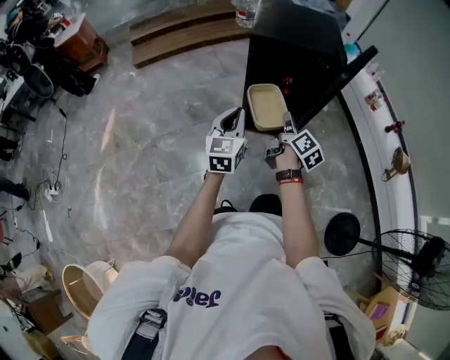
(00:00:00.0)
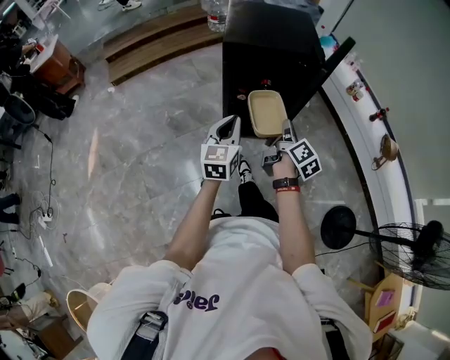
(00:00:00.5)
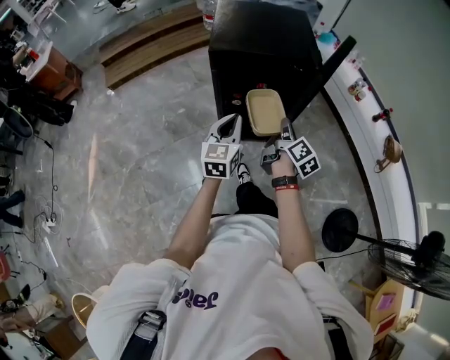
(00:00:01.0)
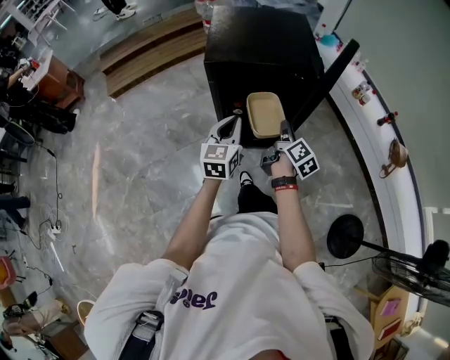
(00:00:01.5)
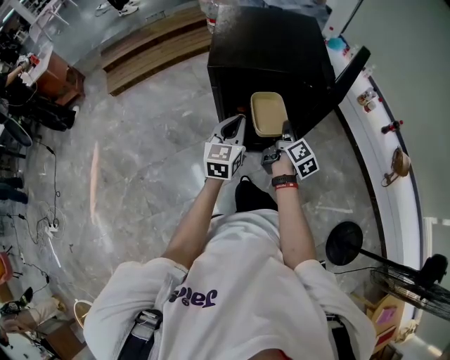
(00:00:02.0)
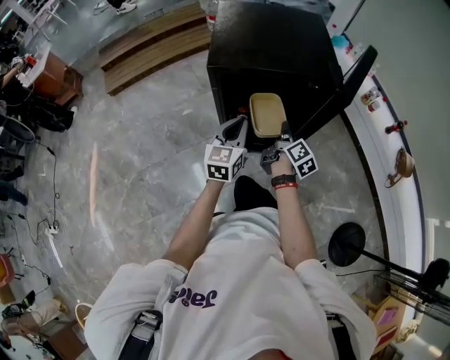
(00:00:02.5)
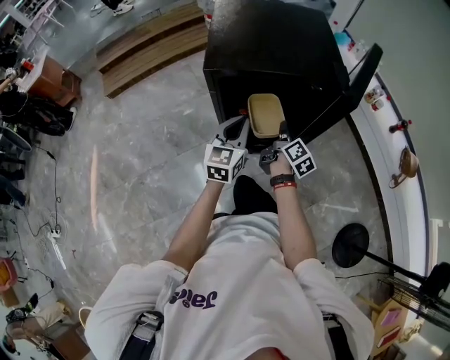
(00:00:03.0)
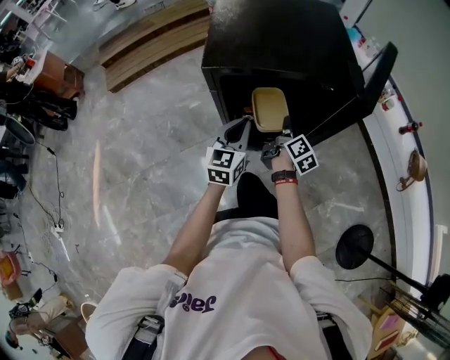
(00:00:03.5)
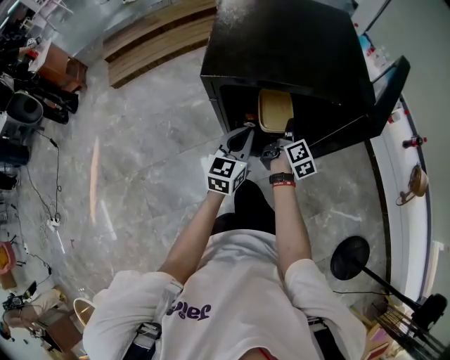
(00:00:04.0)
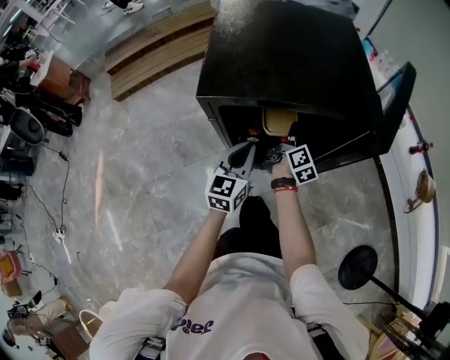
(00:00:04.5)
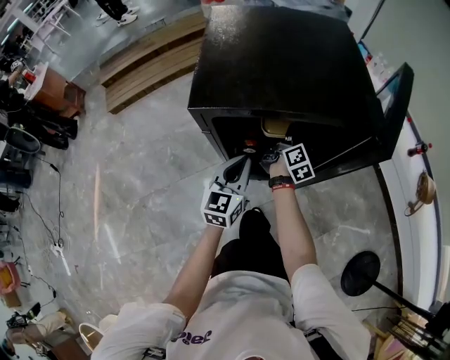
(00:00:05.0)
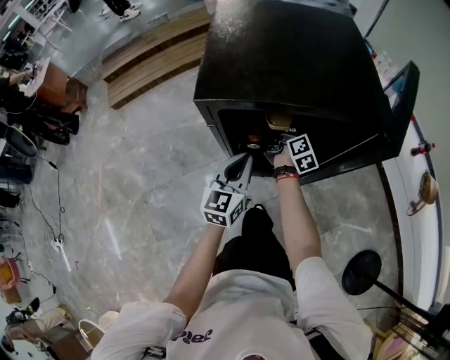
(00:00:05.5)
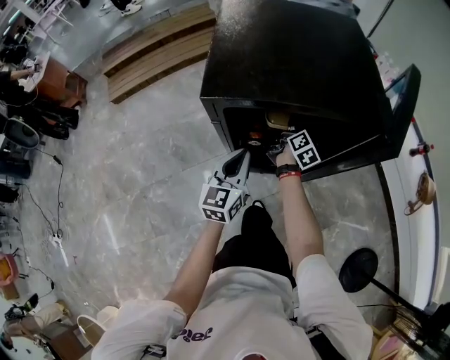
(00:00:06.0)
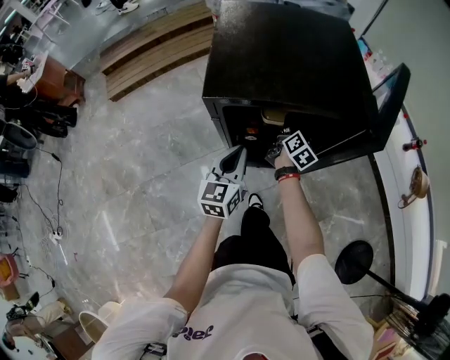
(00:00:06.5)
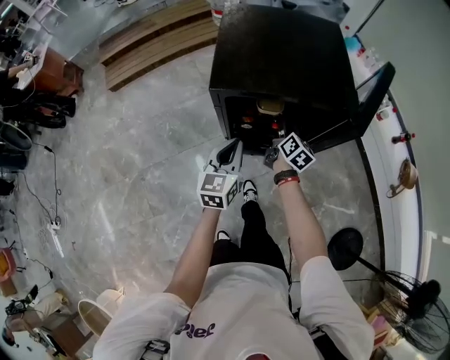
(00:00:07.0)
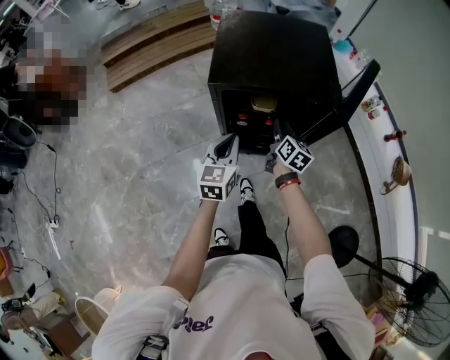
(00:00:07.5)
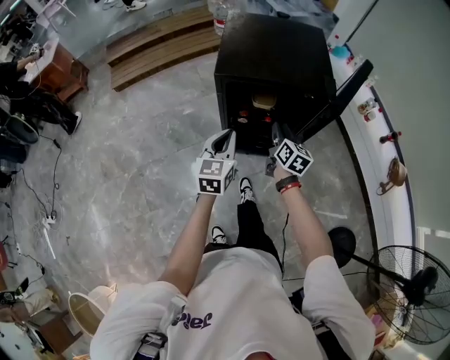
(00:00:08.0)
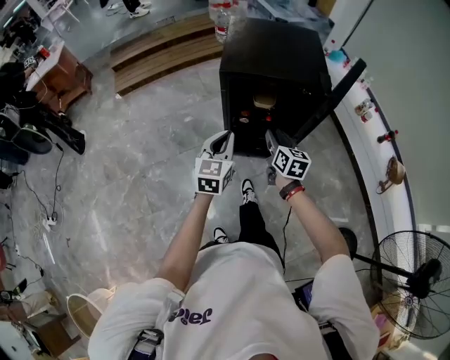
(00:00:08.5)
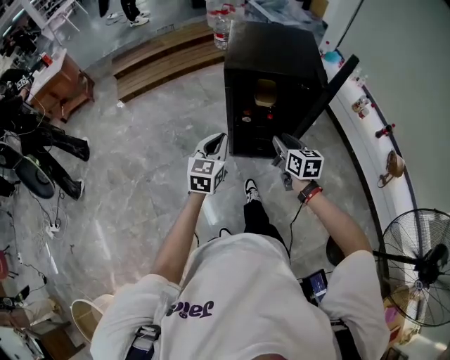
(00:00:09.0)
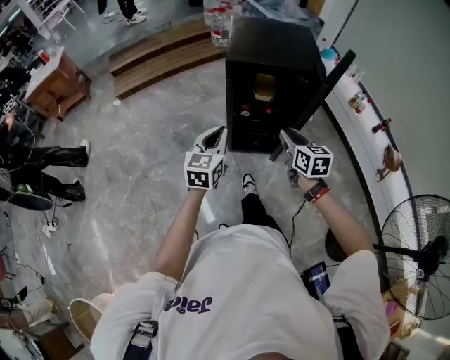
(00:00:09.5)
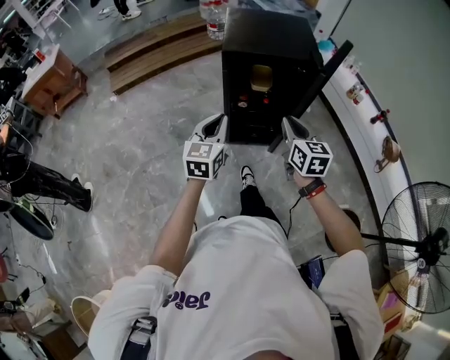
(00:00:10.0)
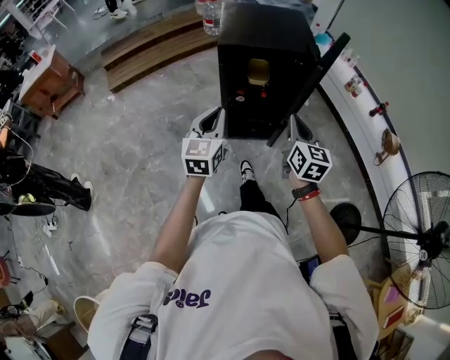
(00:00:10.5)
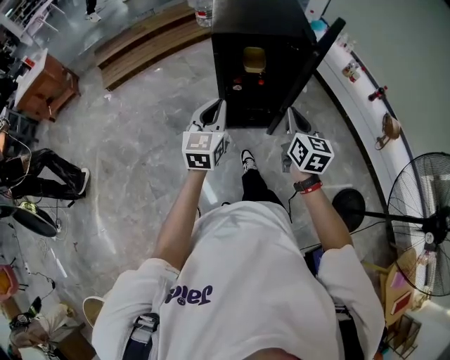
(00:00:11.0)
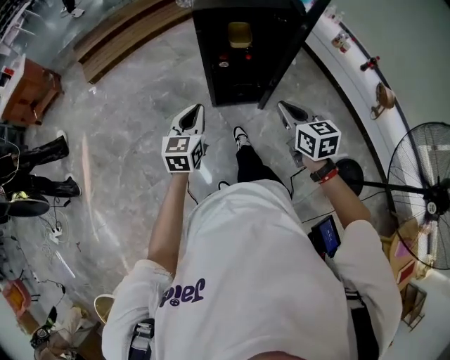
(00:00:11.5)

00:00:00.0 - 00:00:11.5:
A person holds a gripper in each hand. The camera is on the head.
00:00:00.0 - 00:00:02.0: The right gripper goes about 25 cm forward and downward; the left gripper is displaced forward by roughly 25 cm.
00:00:02.0 - 00:00:04.0: Both grippers move downward and forward, roughly 20 cm.
00:00:04.0 - 00:00:06.0: The right gripper shifts approximately 10 cm forward and downward, and opens its fingers.
00:00:06.0 - 00:00:07.5: Both grippers travel together upward and backward, about 20 cm. The right gripper turns by approximately 30 degrees.
00:00:07.5 - 00:00:09.5: The grippers both shift backward and upward by approximately 25 cm. The right gripper swivels approximately 30 degrees.
00:00:09.5 - 00:00:11.5: The left gripper is displaced downward by approximately 5 cm; the right gripper goes roughly 10 cm backward, and closes its fingers.

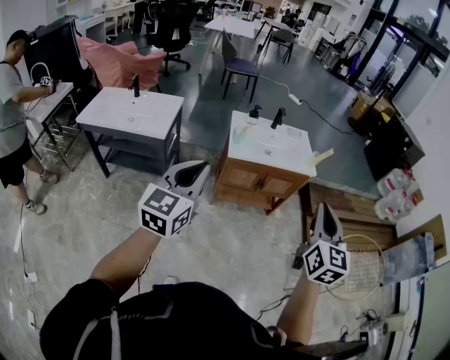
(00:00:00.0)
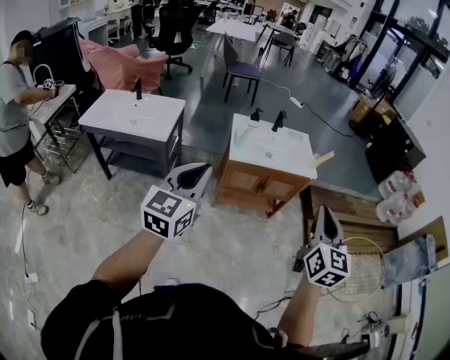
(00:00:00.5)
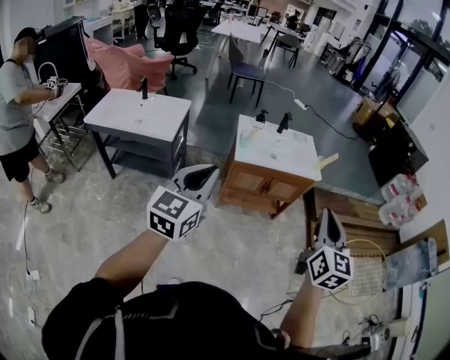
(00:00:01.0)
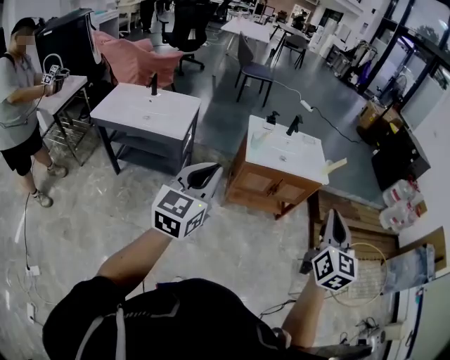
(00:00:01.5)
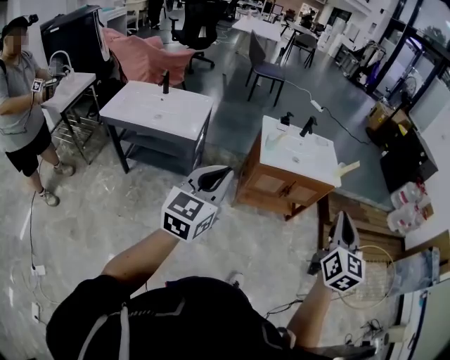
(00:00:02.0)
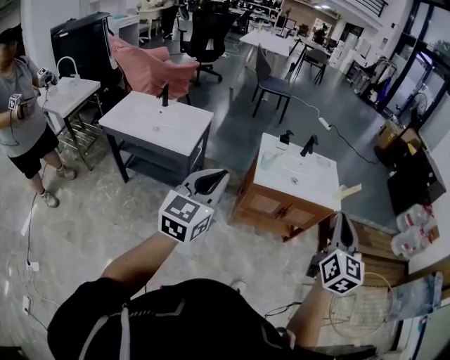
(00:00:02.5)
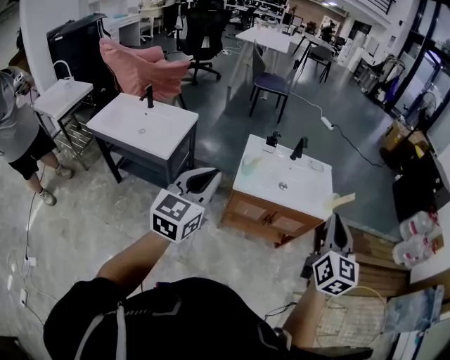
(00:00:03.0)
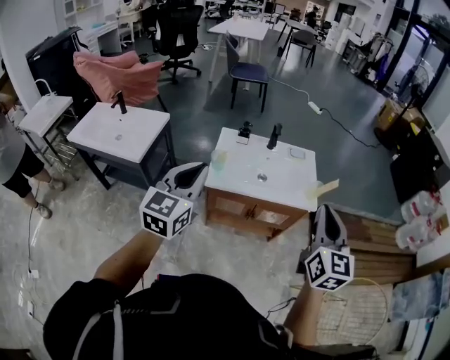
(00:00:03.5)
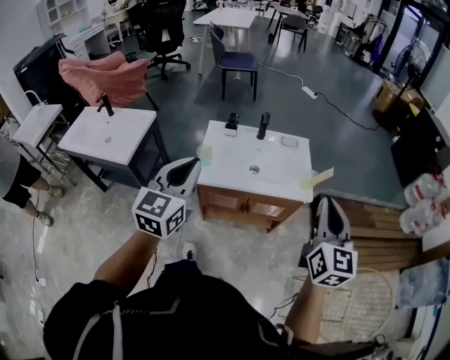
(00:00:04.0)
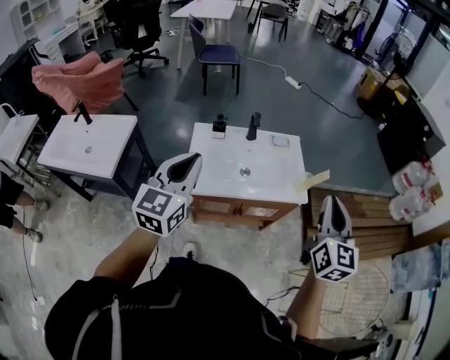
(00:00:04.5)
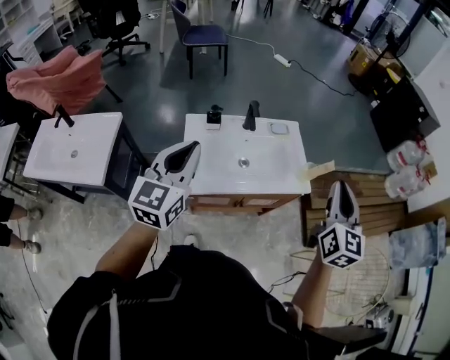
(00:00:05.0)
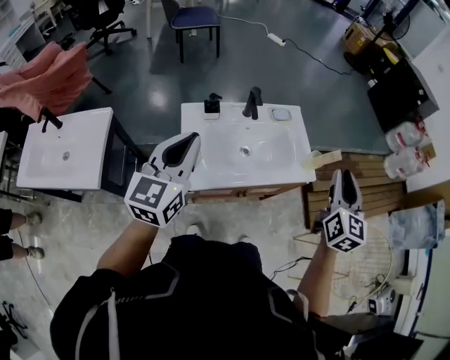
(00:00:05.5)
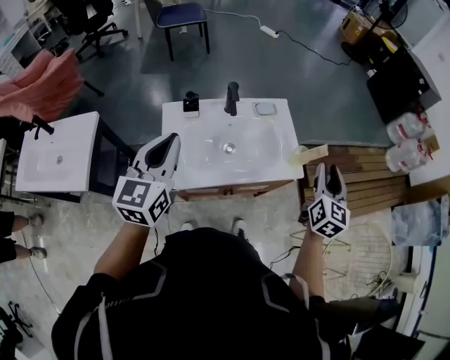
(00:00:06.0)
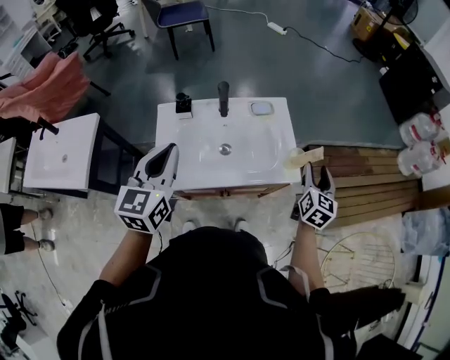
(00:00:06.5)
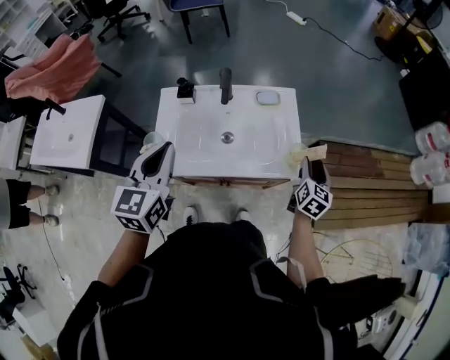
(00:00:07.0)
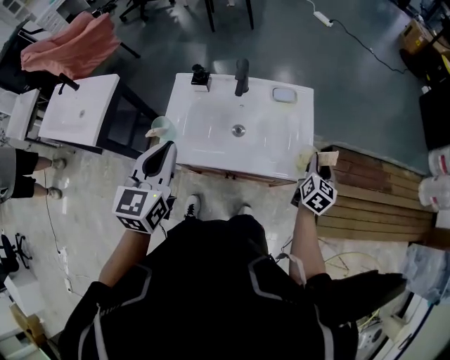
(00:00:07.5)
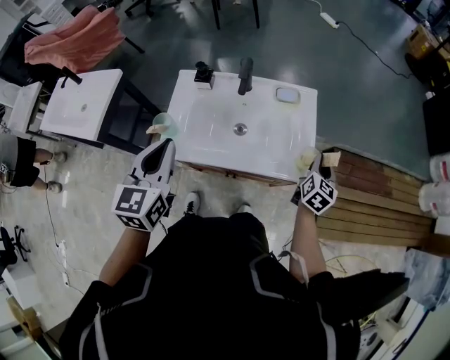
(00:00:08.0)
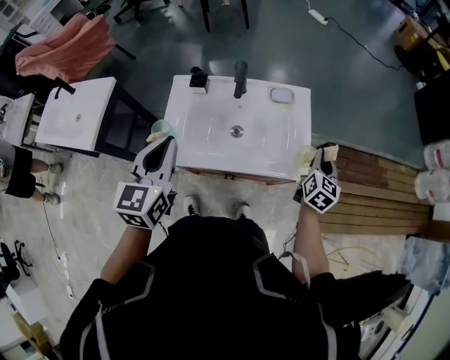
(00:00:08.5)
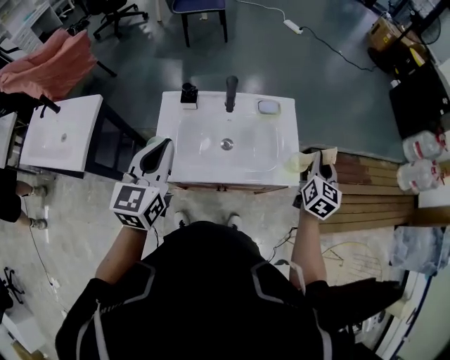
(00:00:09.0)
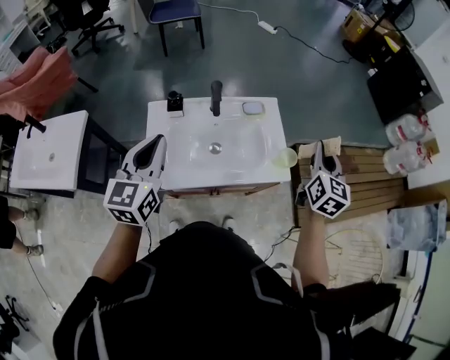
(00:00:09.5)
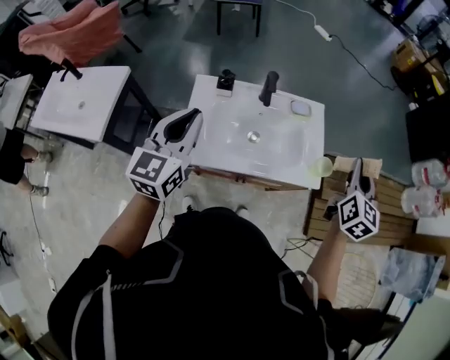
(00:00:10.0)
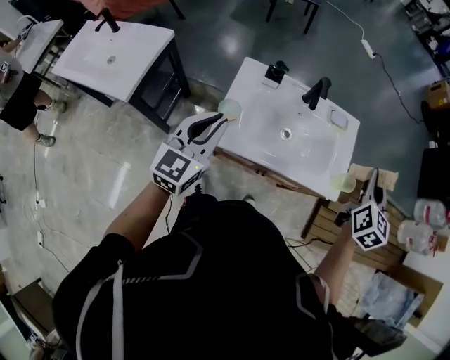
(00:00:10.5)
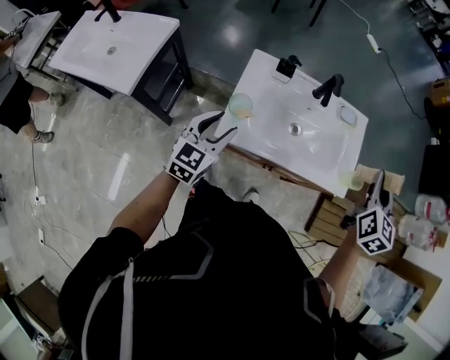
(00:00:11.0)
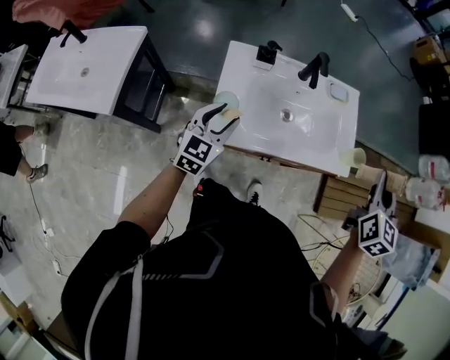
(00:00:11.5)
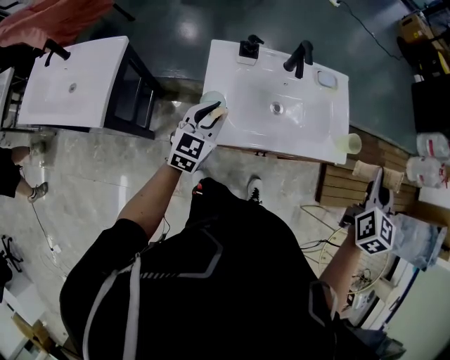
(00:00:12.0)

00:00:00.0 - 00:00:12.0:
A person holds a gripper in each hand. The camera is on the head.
00:00:00.0 - 00:00:02.0: The two grippers go some 10 cm to the left.
00:00:02.0 - 00:00:04.0: The pair of grippers is taken forward and to the right, some 40 cm.
00:00:04.0 - 00:00:06.0: The left gripper goes roughly 20 cm forward, while the right gripper moves forward and downward, about 25 cm, swivels approximately 30 degrees, and opens up.
00:00:06.0 - 00:00:08.0: The right gripper moves downward and forward, about 25 cm, and closes its fingers. Meanwhile the left gripper travels to the right and downward by some 10 cm, and swivels about 20 degrees.
00:00:08.0 - 00:00:10.0: The left gripper shifts roughly 10 cm to the left, while the right gripper goes approximately 25 cm upward.
00:00:10.0 - 00:00:12.0: The right gripper moves backward and to the left, roughly 10 cm. The left gripper shifts about 20 cm downward, and opens, then closes once more.

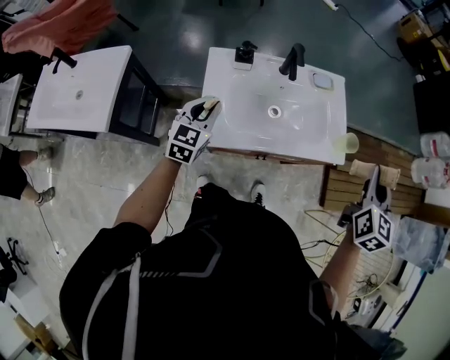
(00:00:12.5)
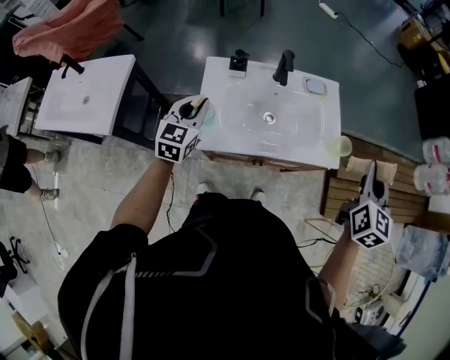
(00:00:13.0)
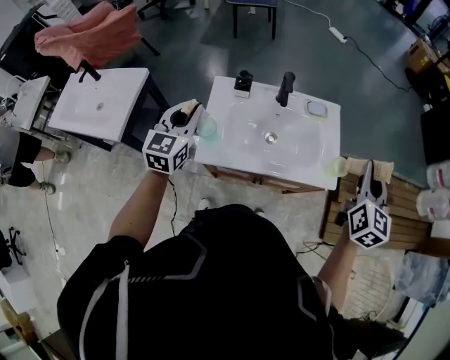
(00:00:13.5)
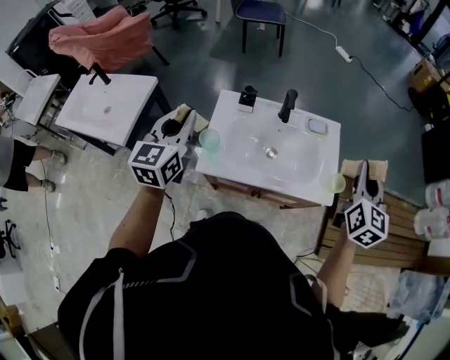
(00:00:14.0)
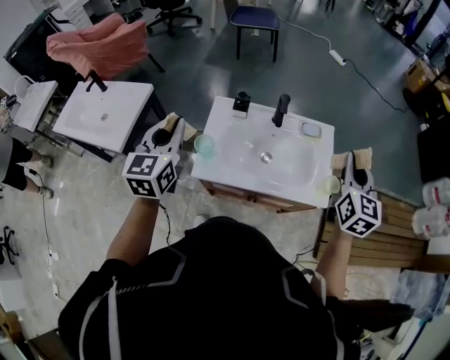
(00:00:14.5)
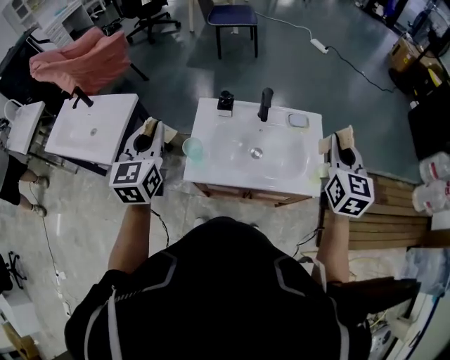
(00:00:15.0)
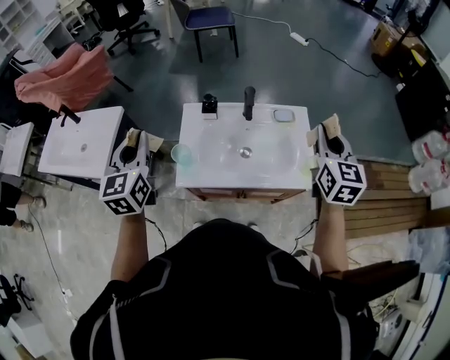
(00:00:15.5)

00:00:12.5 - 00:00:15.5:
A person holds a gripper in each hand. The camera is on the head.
00:00:12.5 - 00:00:14.0: The left gripper goes roughly 20 cm upward, and turns by some 20 degrees. The right gripper is displaced forward by about 10 cm.
00:00:14.0 - 00:00:15.5: There are only small adjustments of the grippers.
